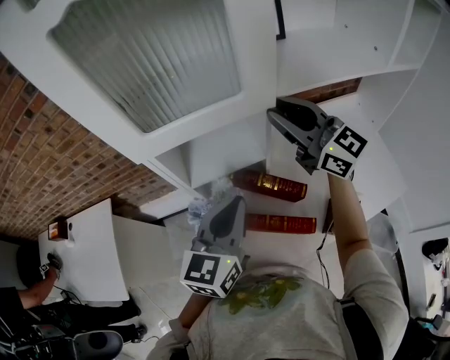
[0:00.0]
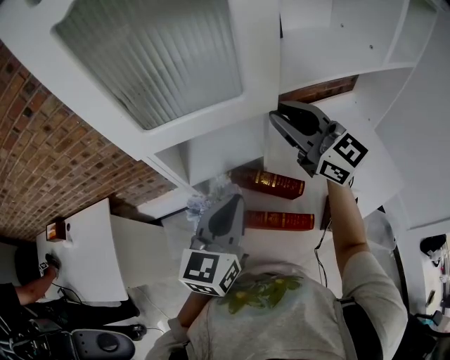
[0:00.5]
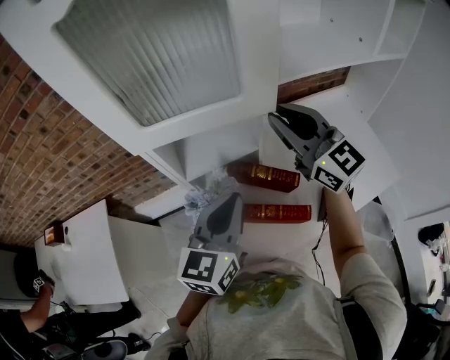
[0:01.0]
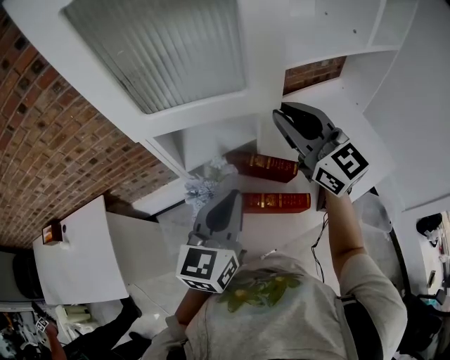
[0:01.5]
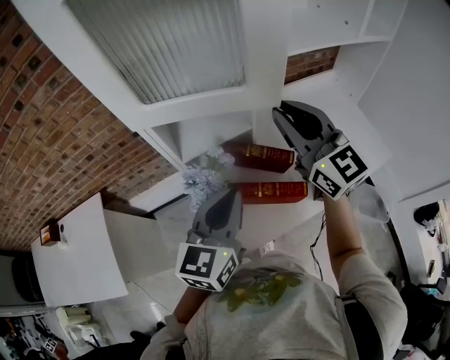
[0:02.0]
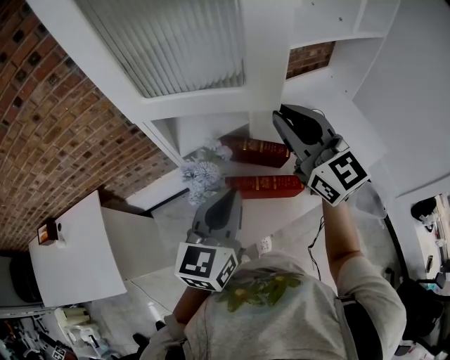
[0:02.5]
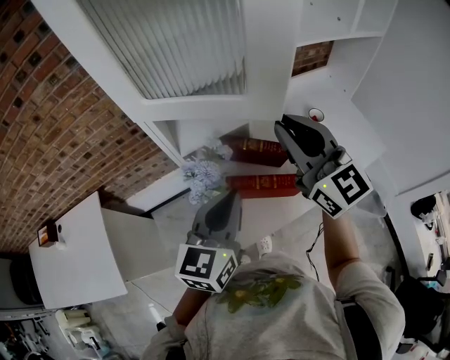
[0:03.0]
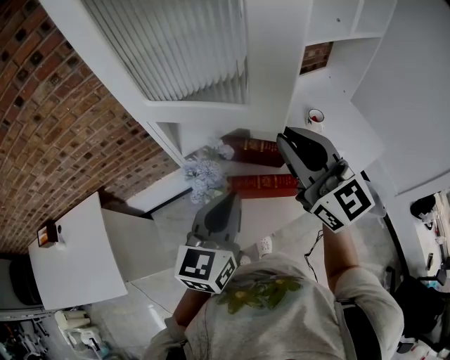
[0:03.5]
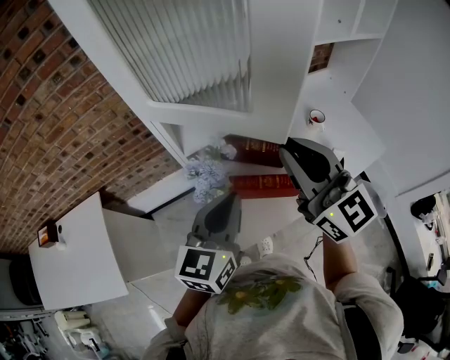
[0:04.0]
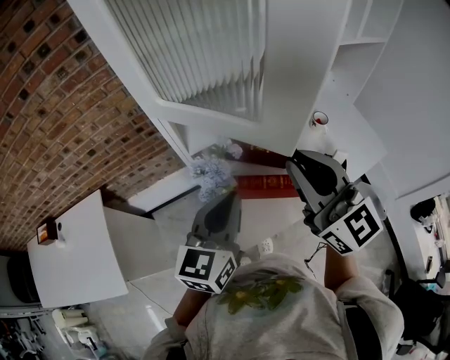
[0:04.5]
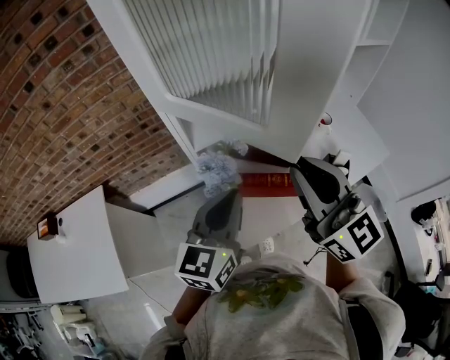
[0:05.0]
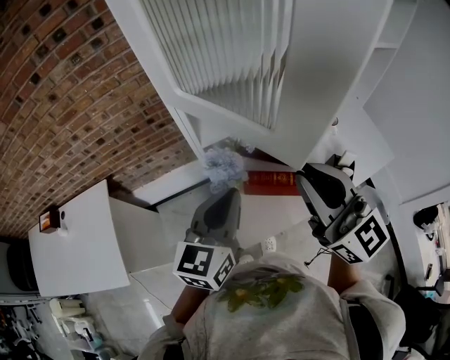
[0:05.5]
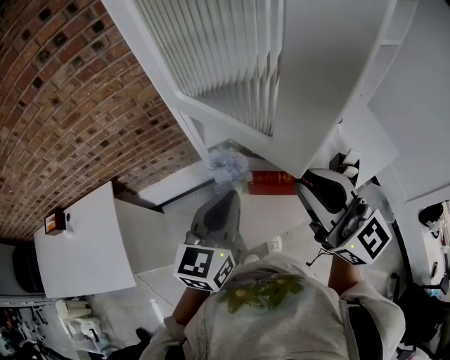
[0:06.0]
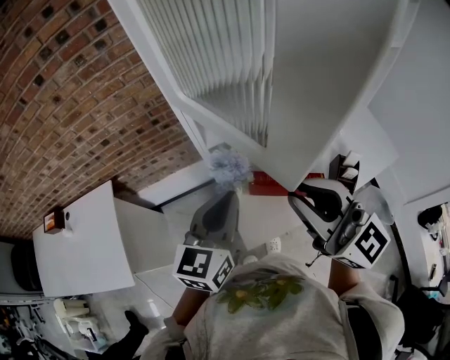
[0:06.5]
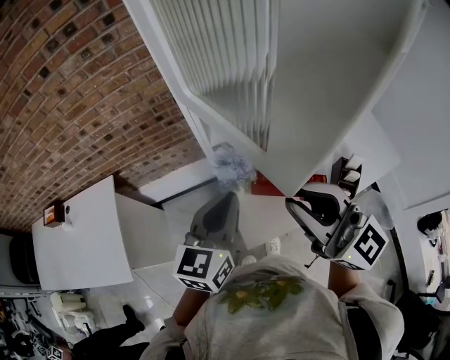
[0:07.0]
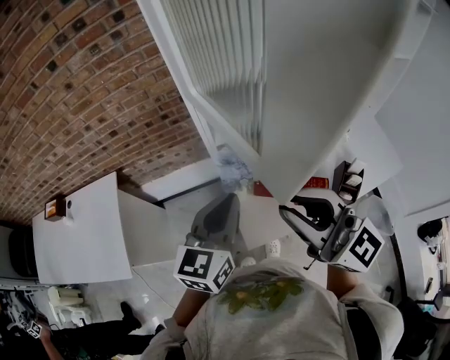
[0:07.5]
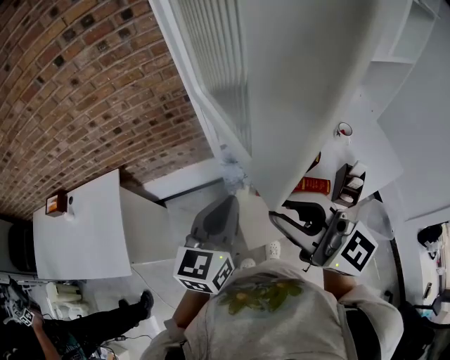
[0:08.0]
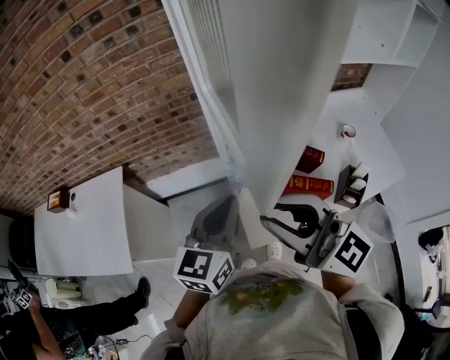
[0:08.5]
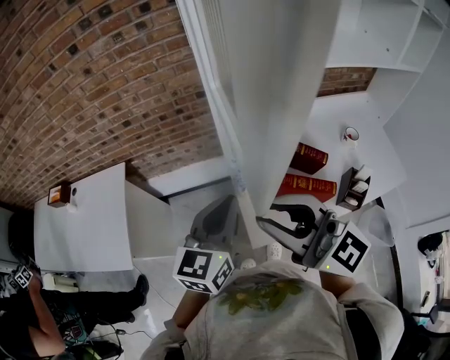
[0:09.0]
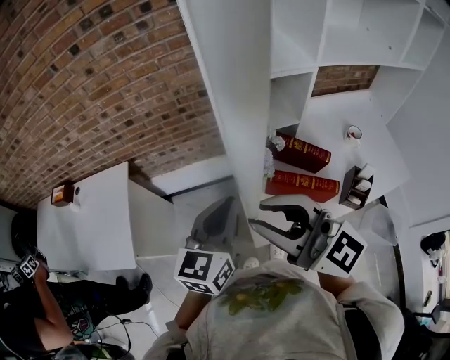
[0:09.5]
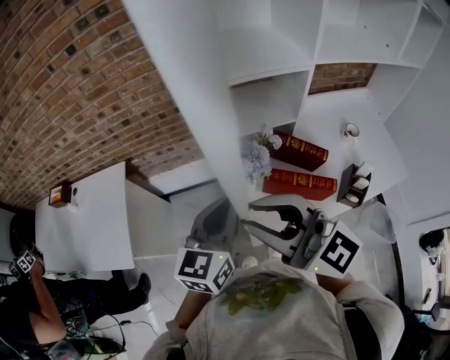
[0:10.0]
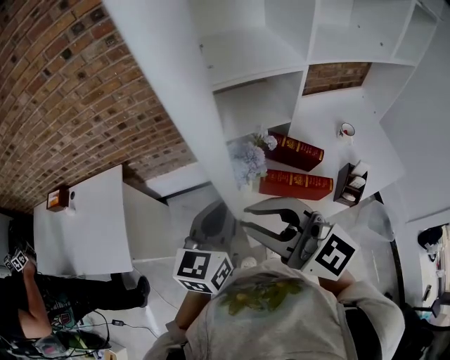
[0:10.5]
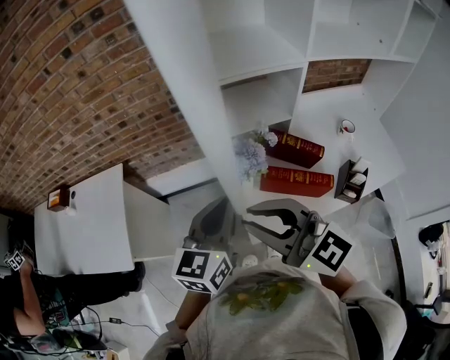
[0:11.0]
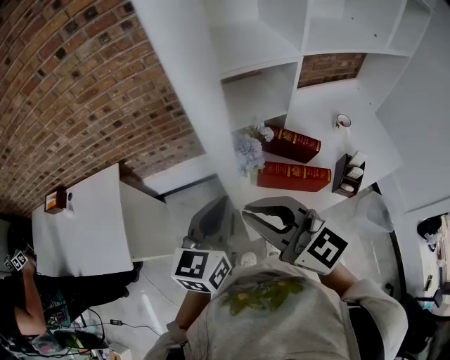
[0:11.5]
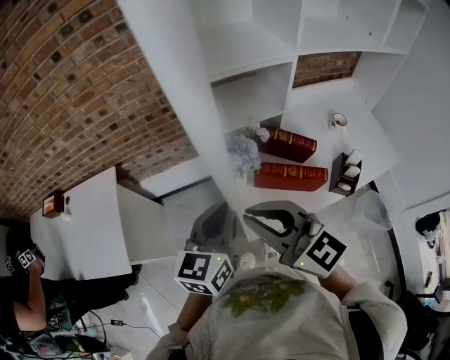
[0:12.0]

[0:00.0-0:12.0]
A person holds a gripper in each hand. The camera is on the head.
0:00.0 to 0:02.0: The right gripper goes about 10 cm backward, and changes its angle by some 20 degrees. Meanwhile the left gripper moves backward, roughly 5 cm.
0:02.0 to 0:04.0: The right gripper shifts about 10 cm backward.
0:04.0 to 0:06.0: The right gripper travels backward by some 5 cm. Meanwhile the left gripper heads to the left, covering roughly 5 cm.
0:06.0 to 0:08.0: The right gripper is displaced to the left by some 10 cm.
0:08.0 to 0:10.0: The right gripper shifts some 5 cm to the left.
0:10.0 to 0:12.0: The right gripper heads downward, covering about 5 cm.

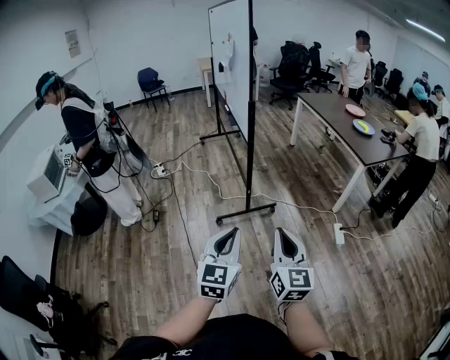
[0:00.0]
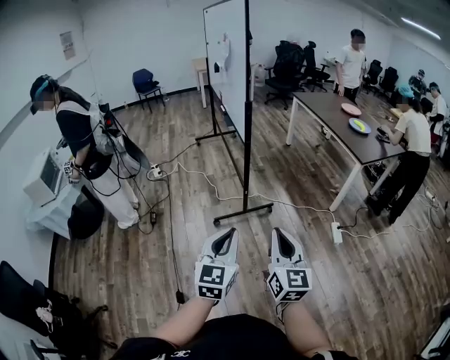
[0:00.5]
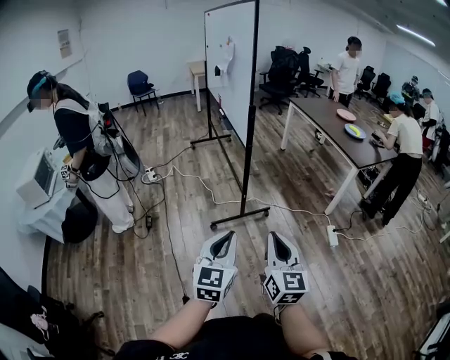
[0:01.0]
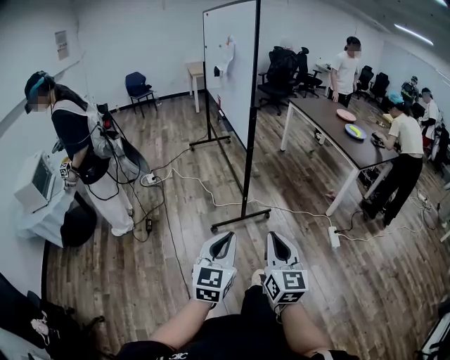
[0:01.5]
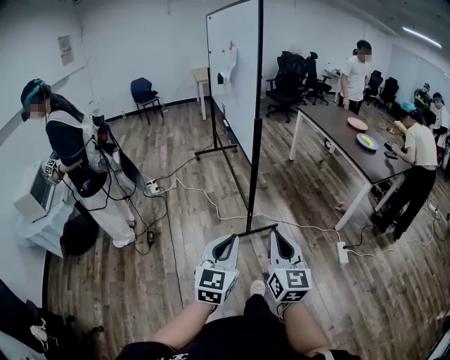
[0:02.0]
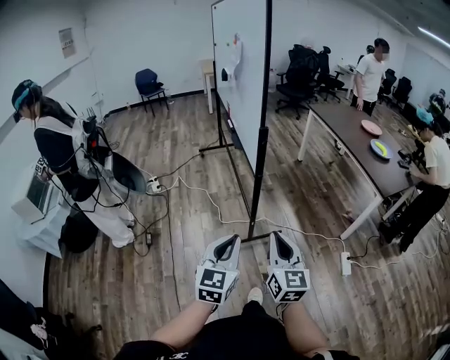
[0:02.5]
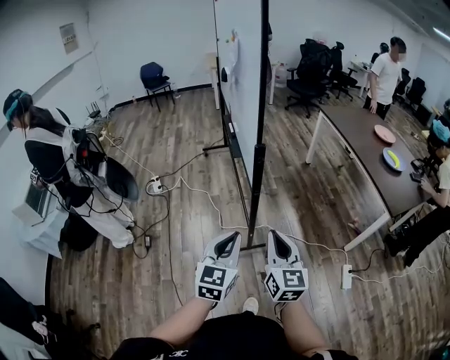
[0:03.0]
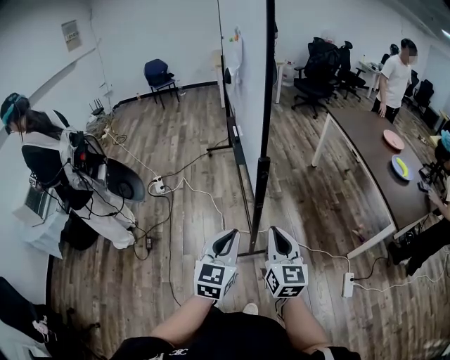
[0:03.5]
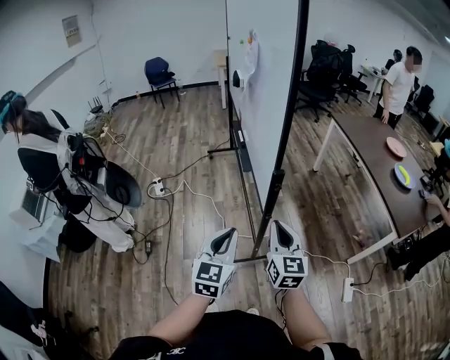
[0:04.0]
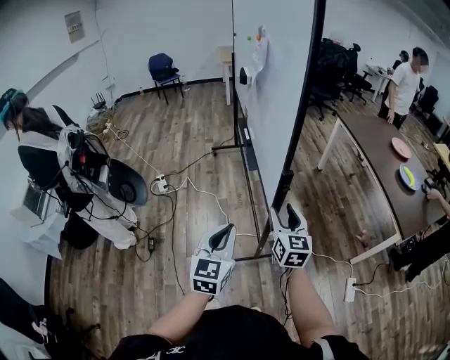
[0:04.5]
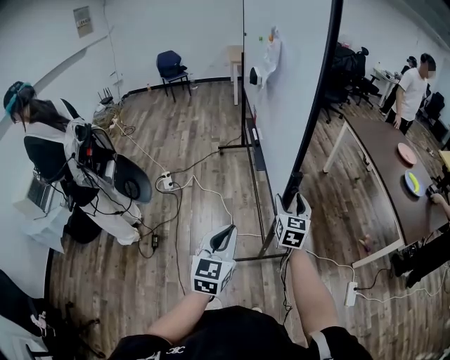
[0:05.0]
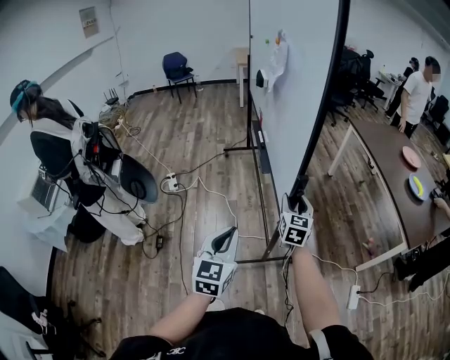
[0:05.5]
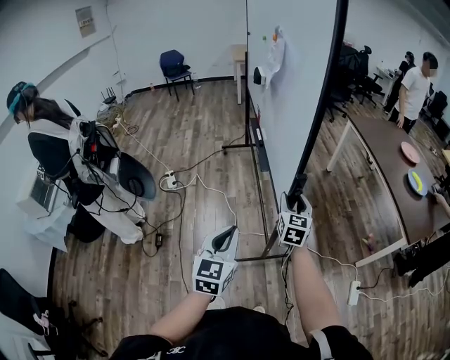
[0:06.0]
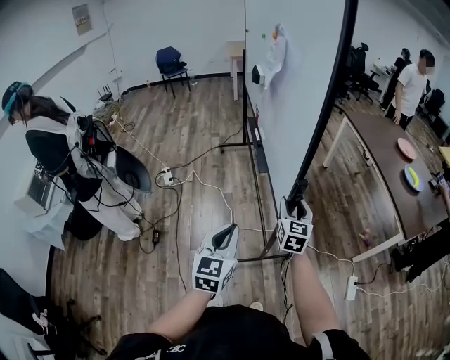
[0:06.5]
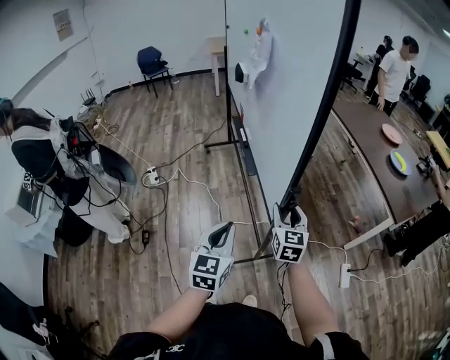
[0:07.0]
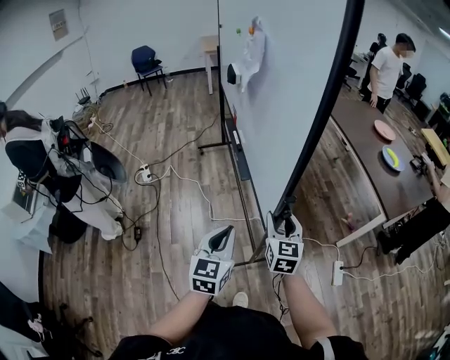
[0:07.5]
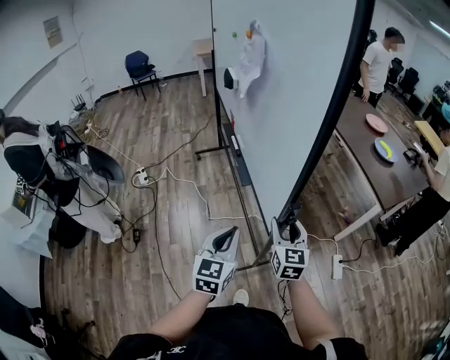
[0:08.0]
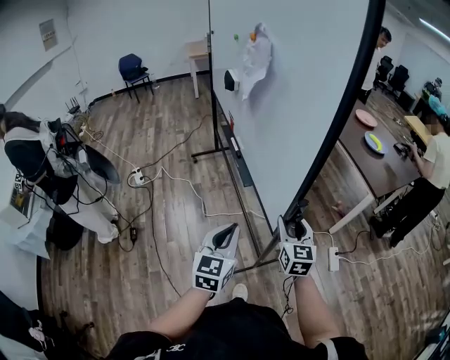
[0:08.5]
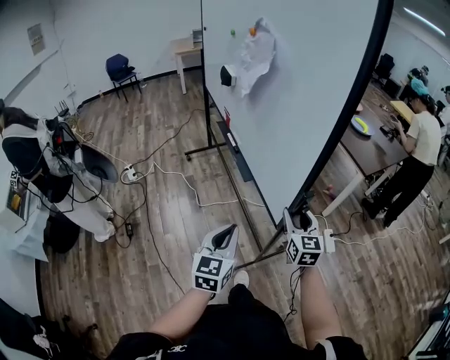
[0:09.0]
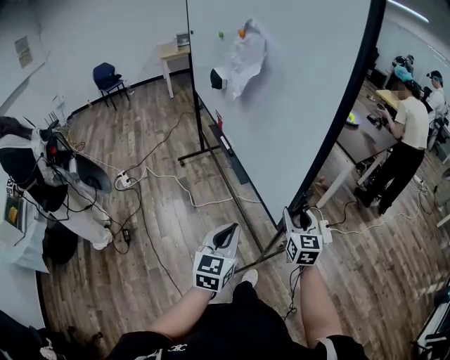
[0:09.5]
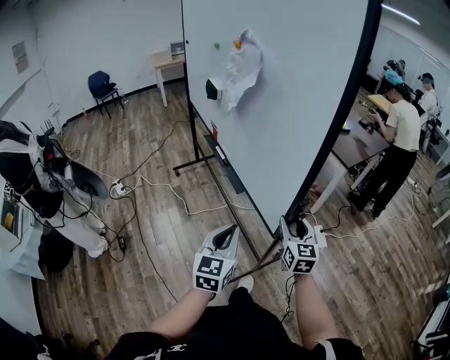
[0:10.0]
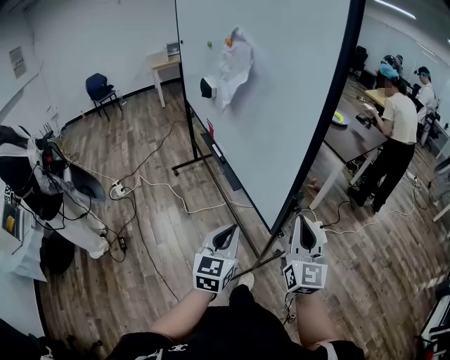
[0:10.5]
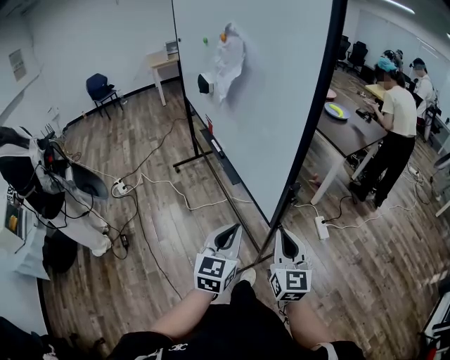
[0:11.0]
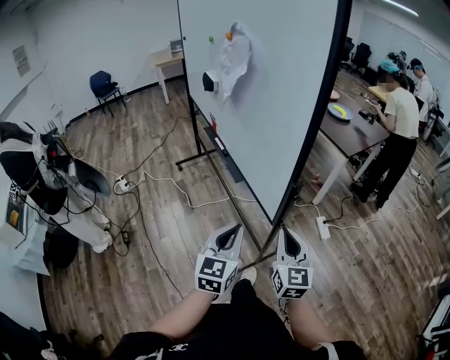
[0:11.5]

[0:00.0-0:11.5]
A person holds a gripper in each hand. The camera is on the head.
0:00.0 to 0:02.0: The grippers both shift forward and to the left by roughly 15 cm.
0:02.0 to 0:04.0: Both grippers move forward, about 35 cm.
0:04.0 to 0:06.0: The right gripper shifts approximately 15 cm forward, and opens up.
0:06.0 to 0:07.5: The left gripper travels to the right by approximately 10 cm. The right gripper is displaced backward and to the right by some 20 cm.
0:07.5 to 0:09.5: Both grippers travel together backward and to the right, some 20 cm.
0:09.5 to 0:11.5: The left gripper ends up approximately 5 cm from where it was. Meanwhile the right gripper travels backward by about 15 cm, and closes up.

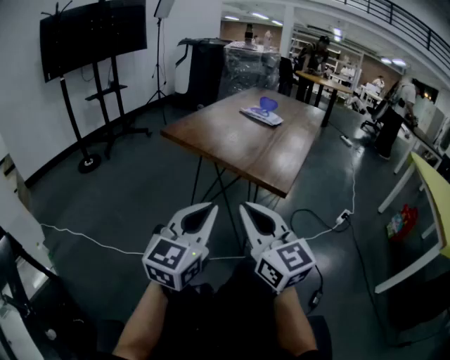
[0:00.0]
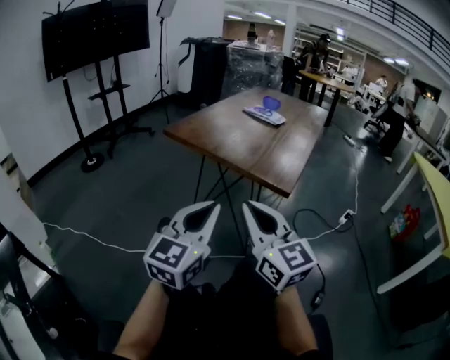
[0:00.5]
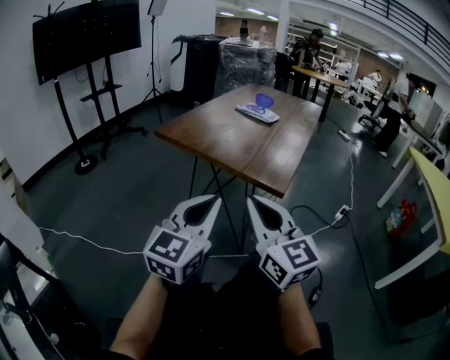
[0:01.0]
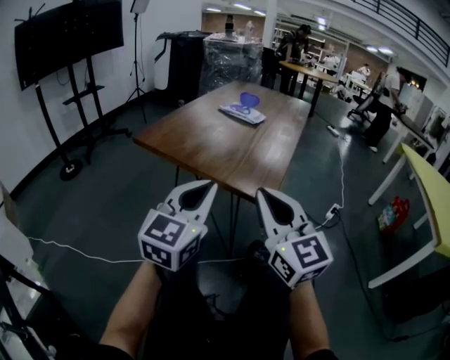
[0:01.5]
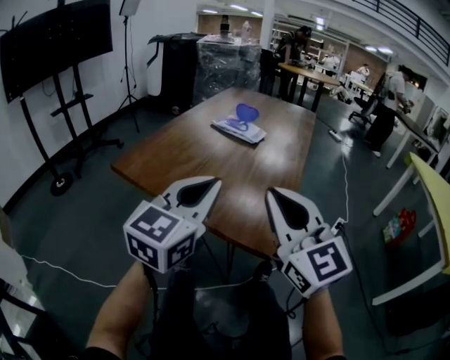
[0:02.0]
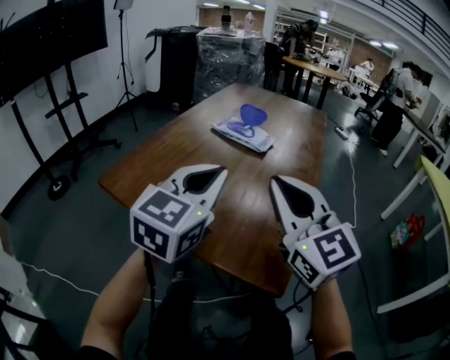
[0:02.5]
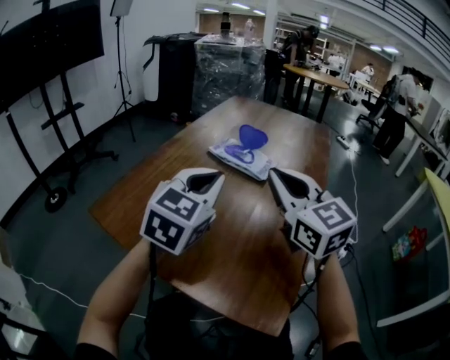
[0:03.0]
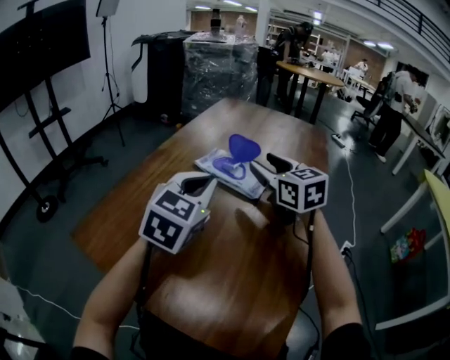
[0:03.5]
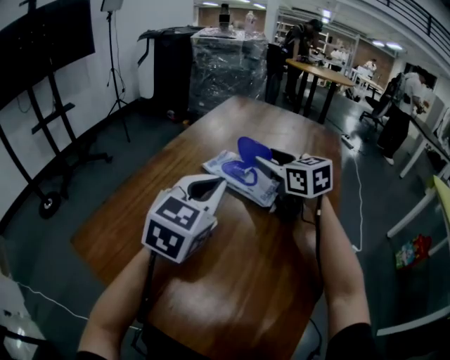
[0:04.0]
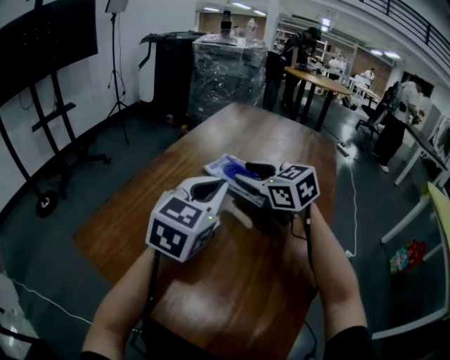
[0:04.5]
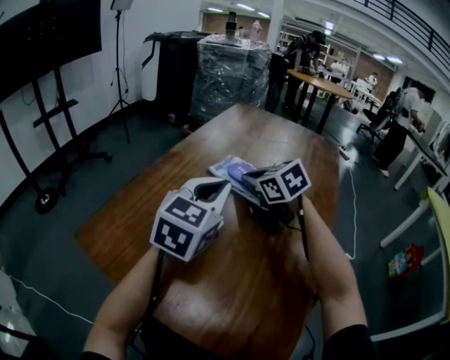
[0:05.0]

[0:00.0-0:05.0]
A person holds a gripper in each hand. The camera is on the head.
0:00.0 to 0:02.5: The grippers both shift forward by about 35 cm.
0:02.5 to 0:05.0: The right gripper travels forward by some 35 cm, points its fingers approximately 40 degrees further downward, and opens and closes again, while the left gripper travels forward by approximately 20 cm.
